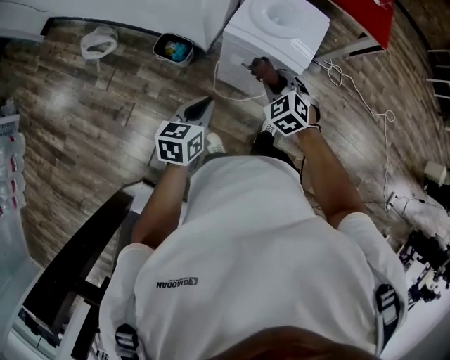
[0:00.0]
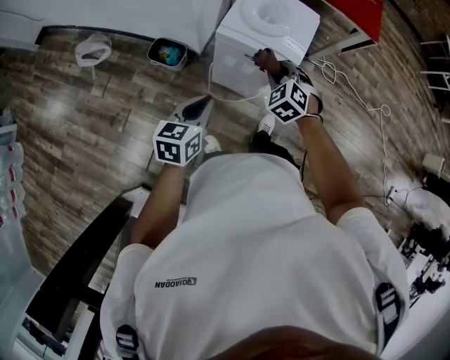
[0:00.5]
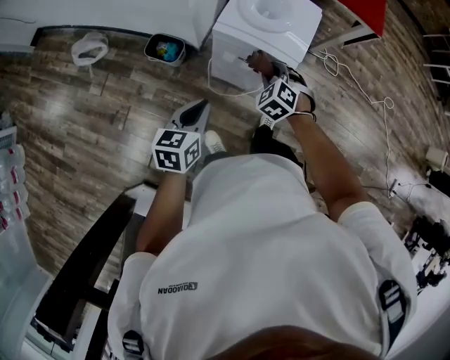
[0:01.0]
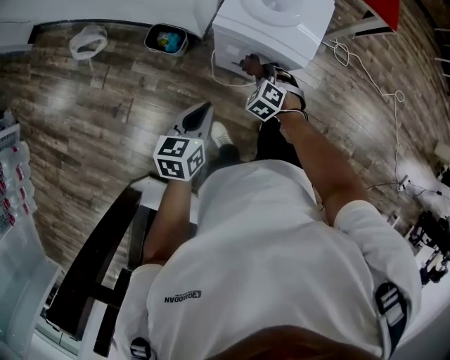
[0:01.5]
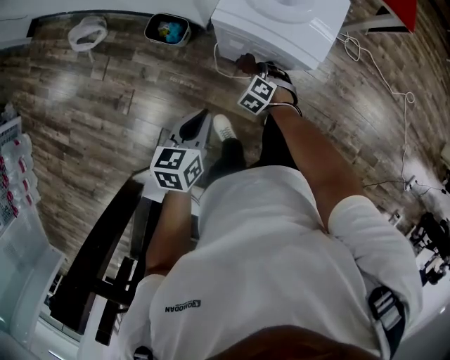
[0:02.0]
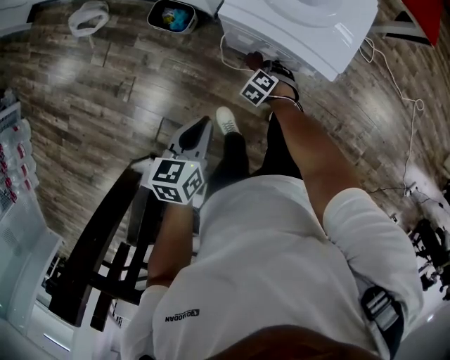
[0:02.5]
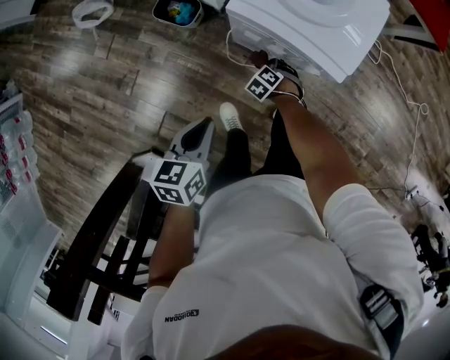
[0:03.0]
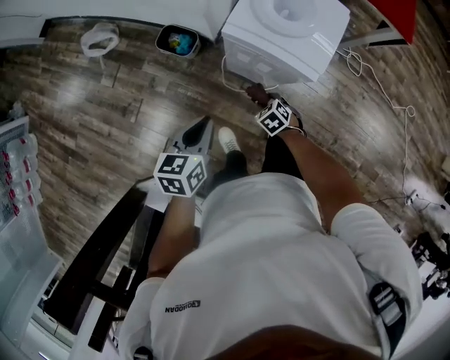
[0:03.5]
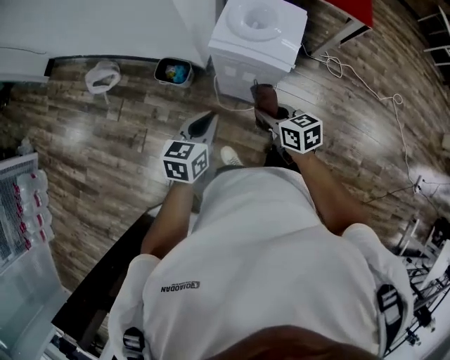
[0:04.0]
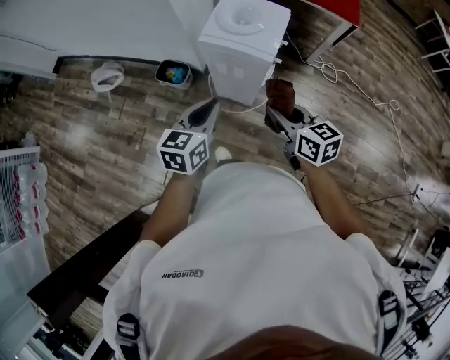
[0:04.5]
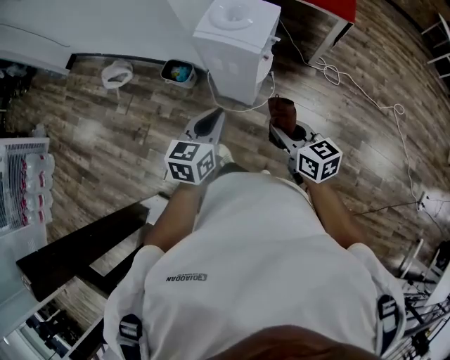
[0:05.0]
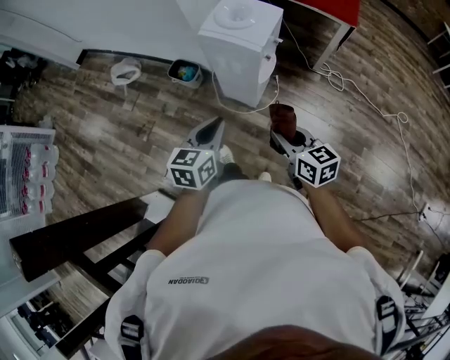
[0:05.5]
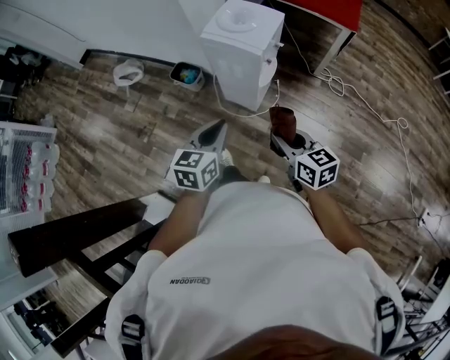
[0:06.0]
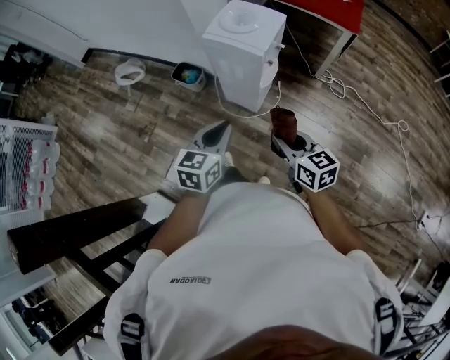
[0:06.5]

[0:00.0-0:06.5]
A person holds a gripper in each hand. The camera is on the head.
0:00.0 to 0:02.0: The left gripper is displaced downward by roughly 5 cm. The right gripper shifts roughly 25 cm downward, and swivels roughly 20 degrees.
0:02.0 to 0:04.5: The left gripper heads upward, covering about 15 cm, and swivels approximately 20 degrees; the right gripper heads upward, covering some 35 cm, and tips its fingers upward by about 40 degrees.
0:04.5 to 0:06.5: The grippers both shift backward and to the right by some 15 cm.

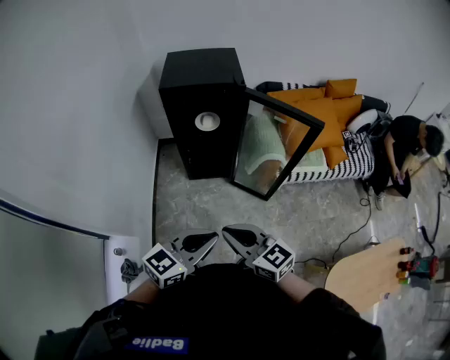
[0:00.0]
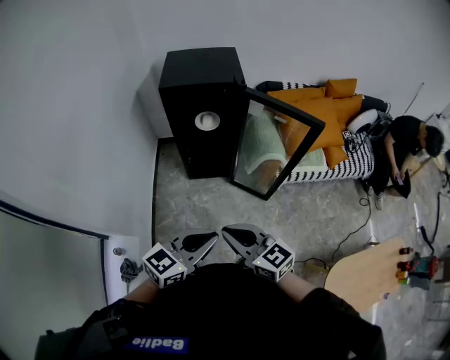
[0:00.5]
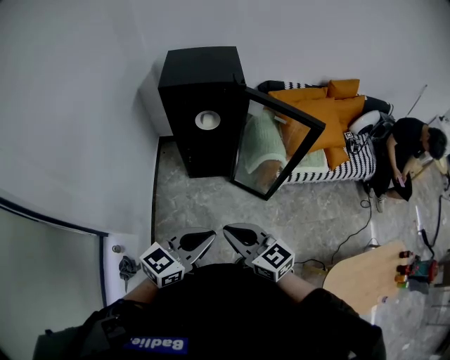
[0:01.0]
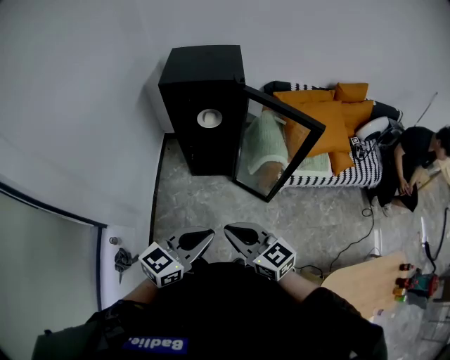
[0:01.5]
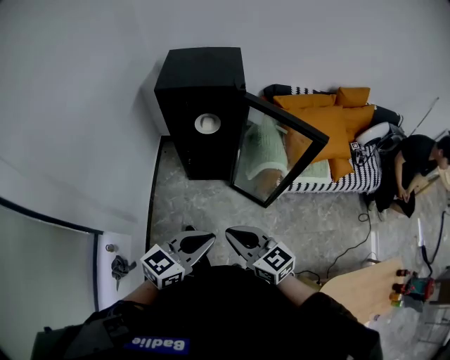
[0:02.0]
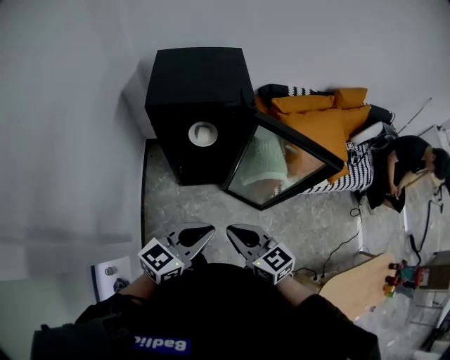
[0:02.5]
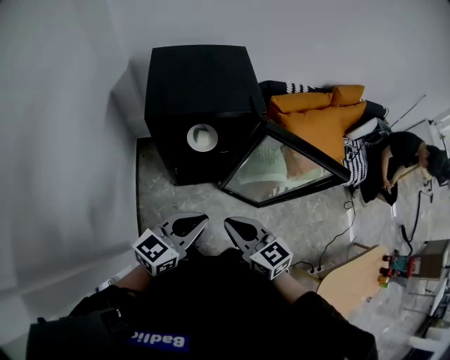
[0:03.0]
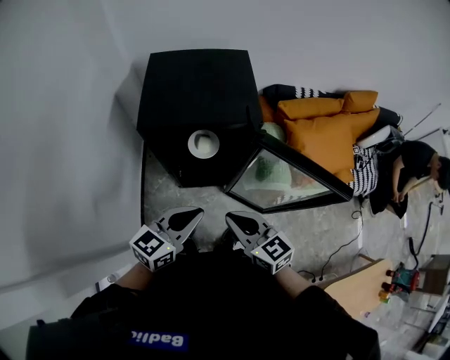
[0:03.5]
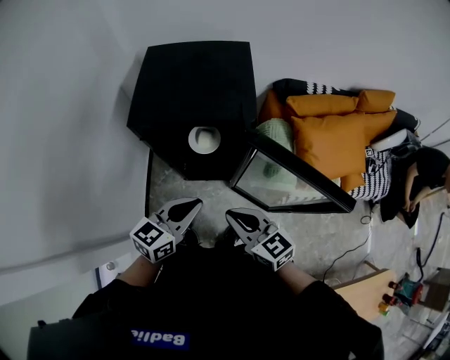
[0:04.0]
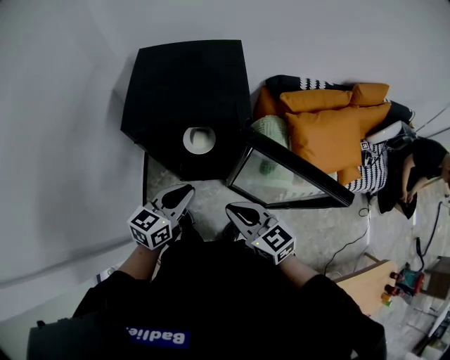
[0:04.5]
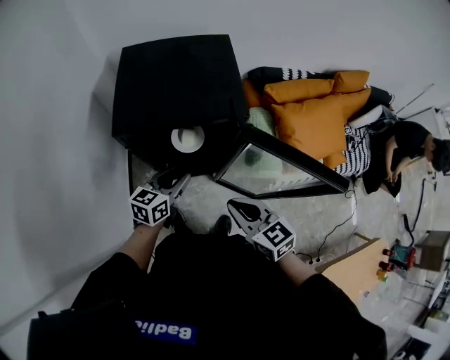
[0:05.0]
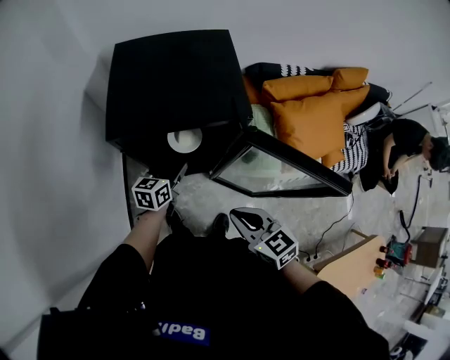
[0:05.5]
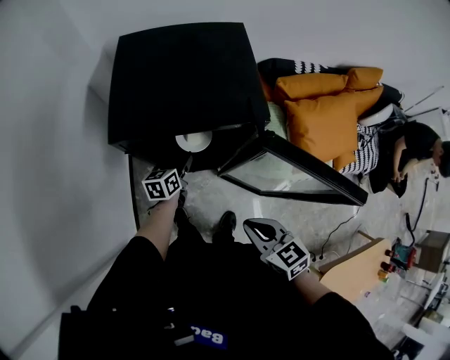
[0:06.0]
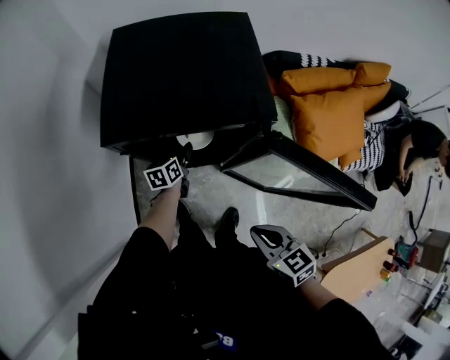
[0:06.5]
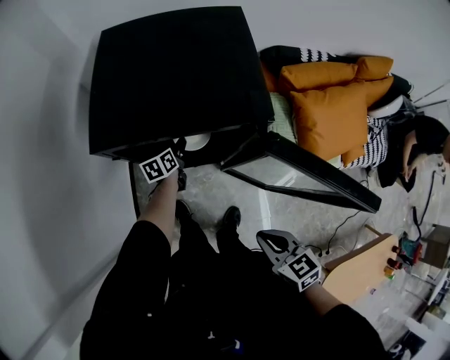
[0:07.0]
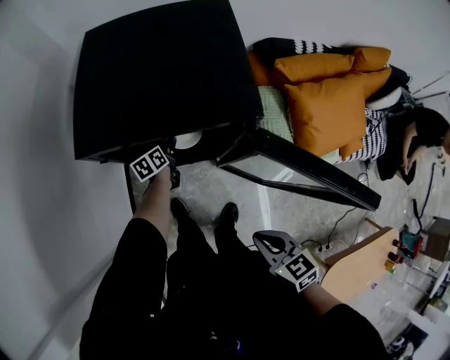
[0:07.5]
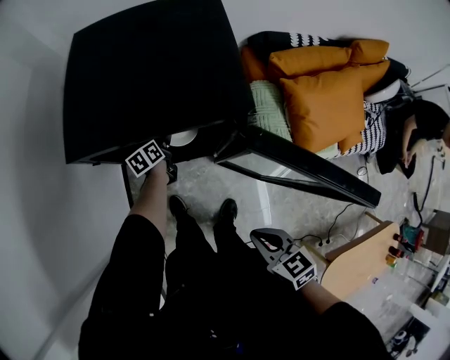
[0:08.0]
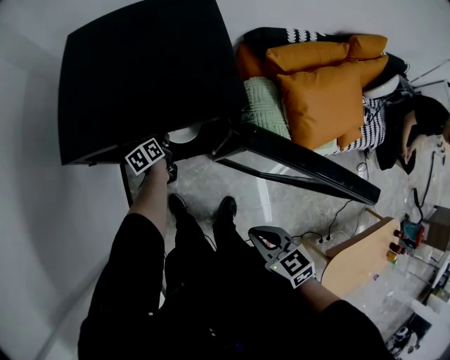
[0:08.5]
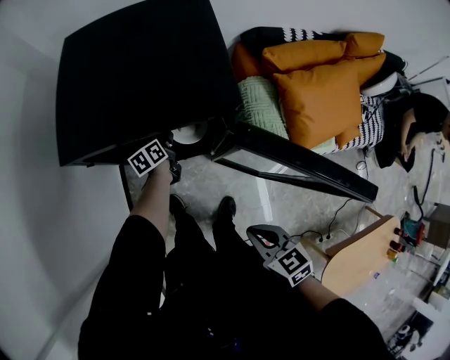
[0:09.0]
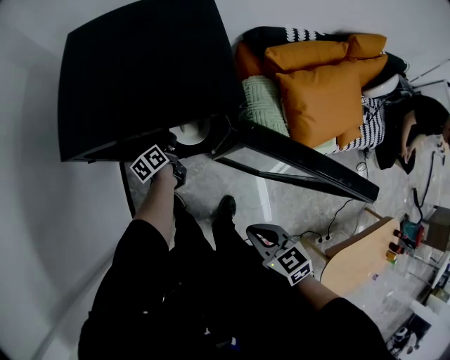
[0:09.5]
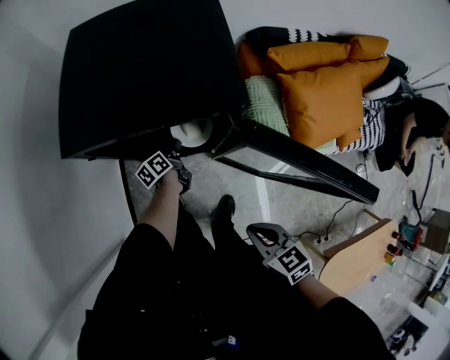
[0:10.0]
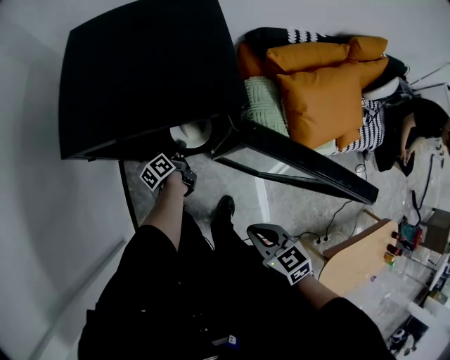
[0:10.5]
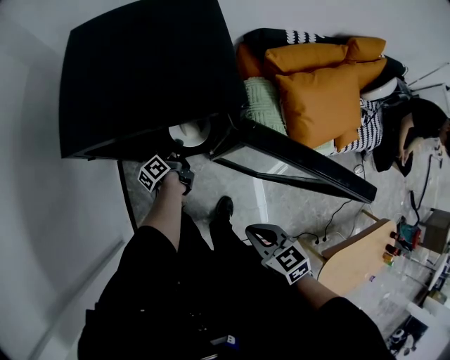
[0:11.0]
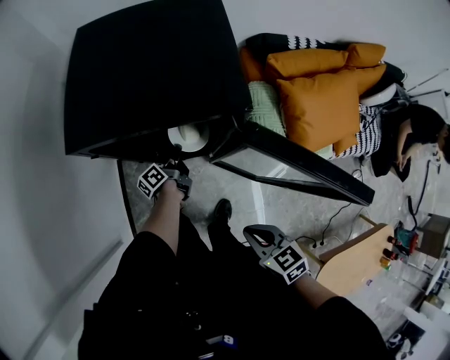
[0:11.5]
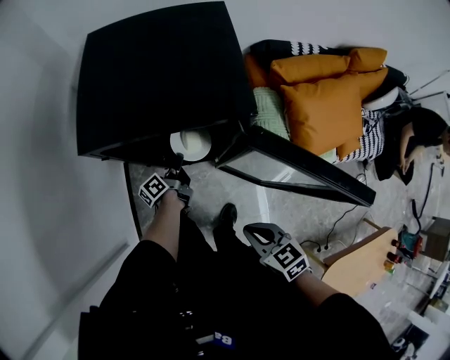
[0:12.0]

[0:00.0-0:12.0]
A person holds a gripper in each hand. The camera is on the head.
0:00.0 to 0:02.0: The right gripper is displaced to the right and forward by roughly 10 cm. Meanwhile the left gripper heads forward, covering roughly 5 cm.
0:02.0 to 0:04.0: Both grippers travel together forward, approximately 30 cm.
0:04.0 to 0:06.0: The right gripper moves downward, approximately 5 cm; the left gripper travels downward and forward by about 30 cm, changes its angle by approximately 30 degrees, and opens its fingers.
0:06.0 to 0:08.0: The left gripper heads downward and forward, covering about 15 cm, and rotates roughly 20 degrees. Meanwhile the right gripper is displaced downward by some 5 cm.
0:08.0 to 0:10.0: The left gripper moves backward, roughly 5 cm, and closes up.
0:10.0 to 0:12.0: The left gripper changes place by approximately 5 cm, and swivels approximately 20 degrees.

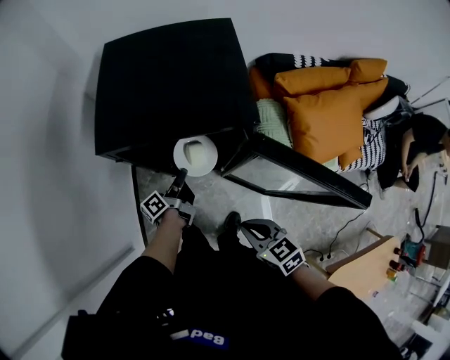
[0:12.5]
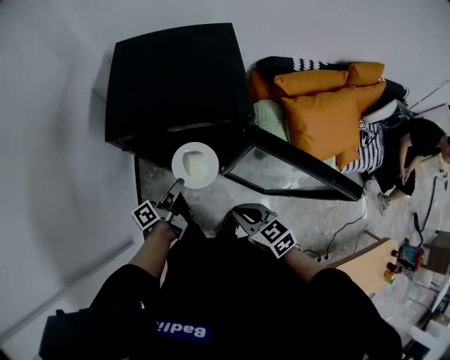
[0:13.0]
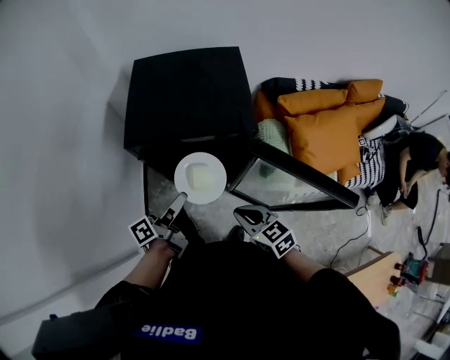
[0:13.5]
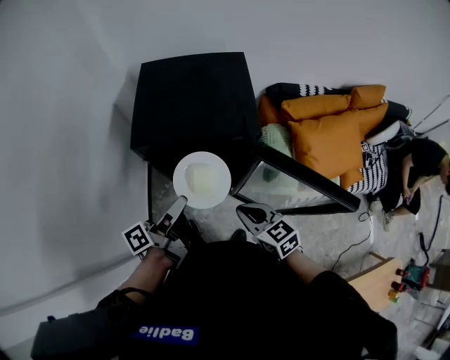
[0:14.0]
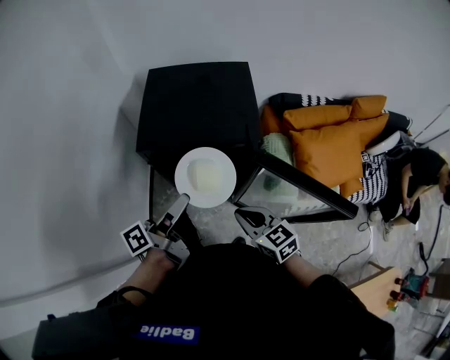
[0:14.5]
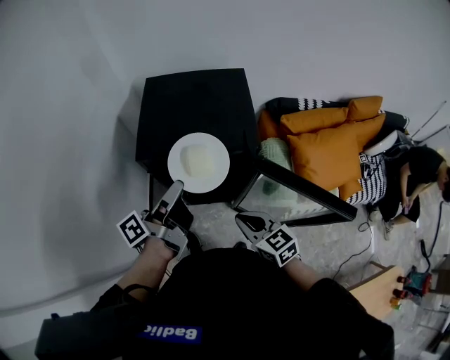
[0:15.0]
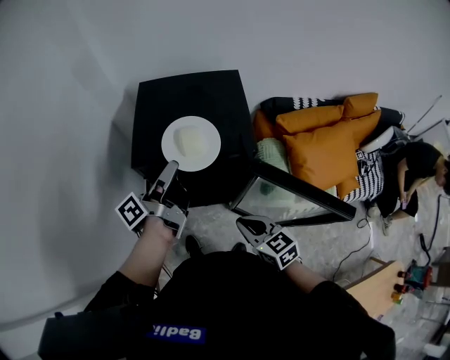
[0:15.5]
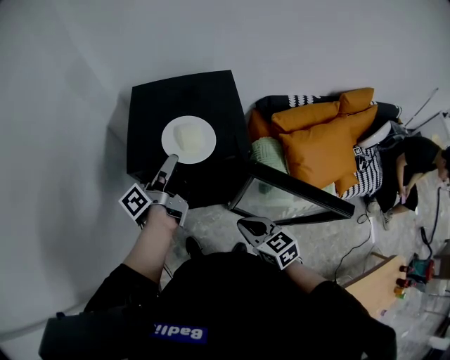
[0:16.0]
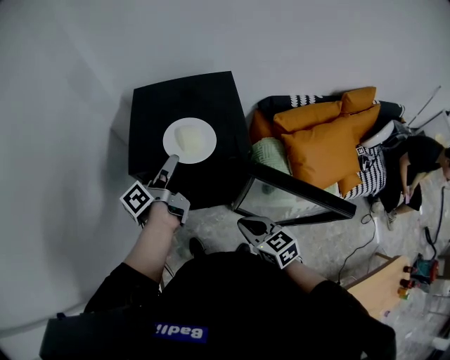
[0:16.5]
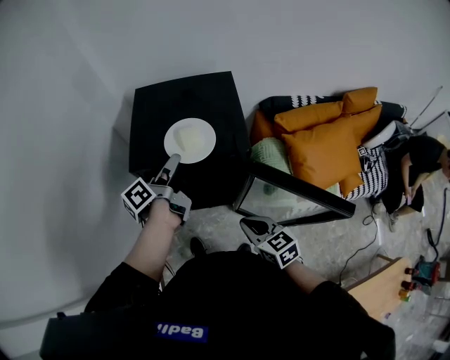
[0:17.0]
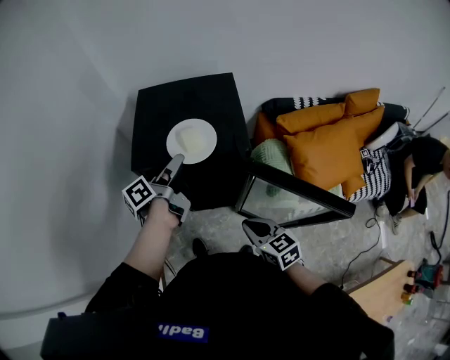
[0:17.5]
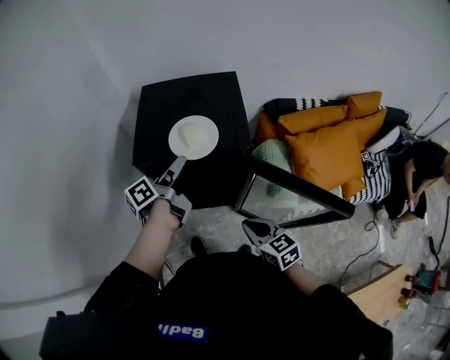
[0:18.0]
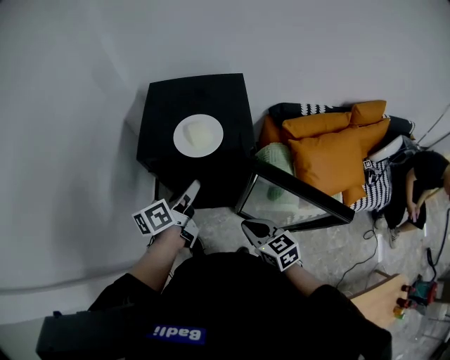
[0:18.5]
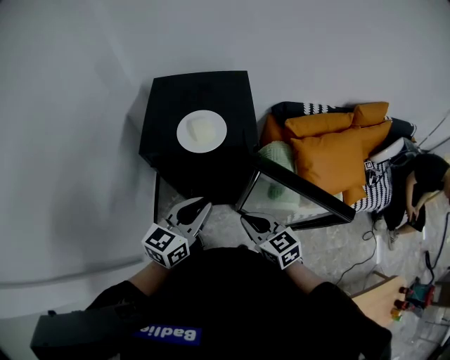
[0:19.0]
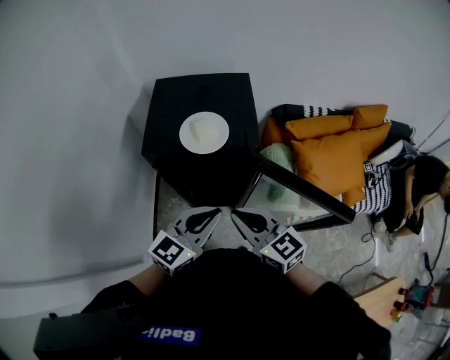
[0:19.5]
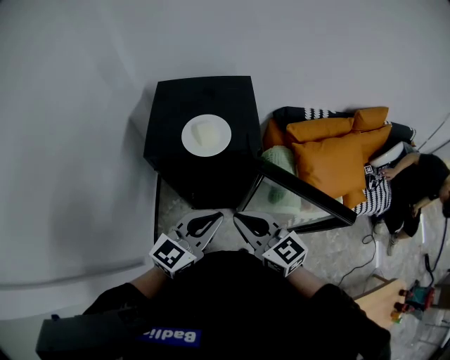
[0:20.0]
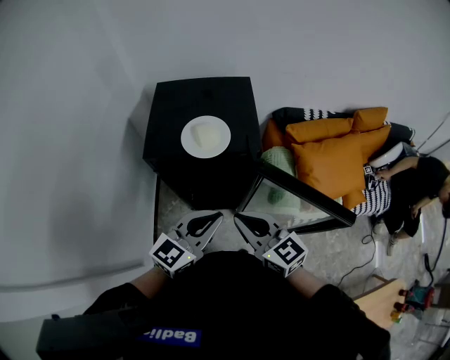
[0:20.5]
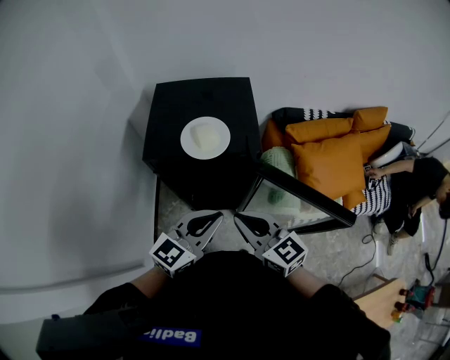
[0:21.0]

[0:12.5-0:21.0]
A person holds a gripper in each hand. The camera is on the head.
0:12.5 to 0:14.5: The right gripper travels upward and forward by about 10 cm; the left gripper heads upward, covering about 30 cm.
0:14.5 to 0:16.5: The left gripper goes roughly 15 cm forward.
0:16.5 to 0:19.0: The left gripper shifts some 20 cm backward, and twists about 60 degrees clockwise, seen from behind.
0:19.0 to 0:21.0: The right gripper goes approximately 10 cm upward; the left gripper changes place by approximately 5 cm.
